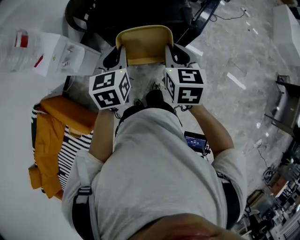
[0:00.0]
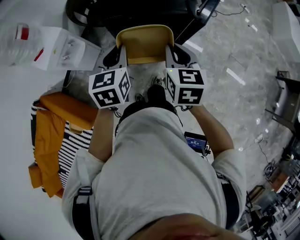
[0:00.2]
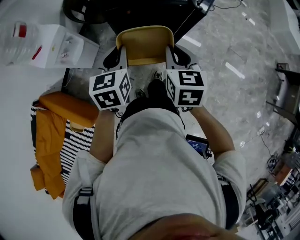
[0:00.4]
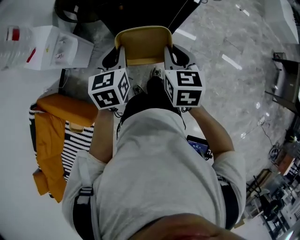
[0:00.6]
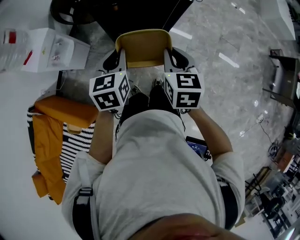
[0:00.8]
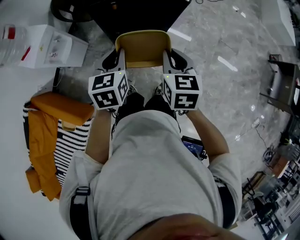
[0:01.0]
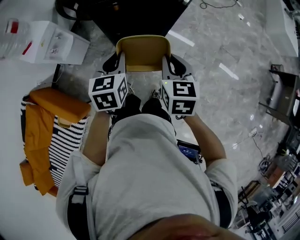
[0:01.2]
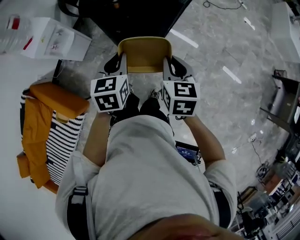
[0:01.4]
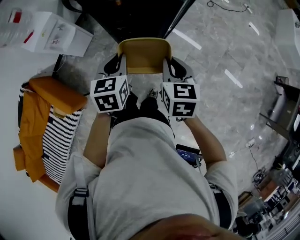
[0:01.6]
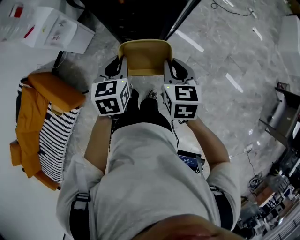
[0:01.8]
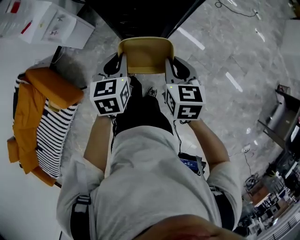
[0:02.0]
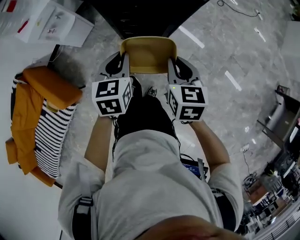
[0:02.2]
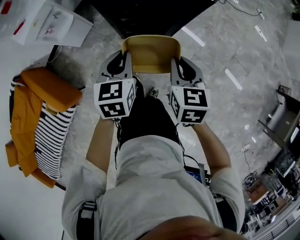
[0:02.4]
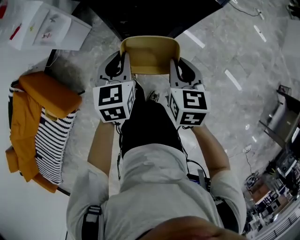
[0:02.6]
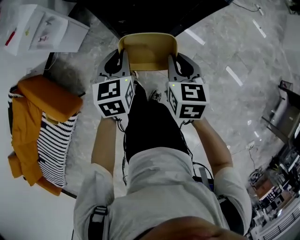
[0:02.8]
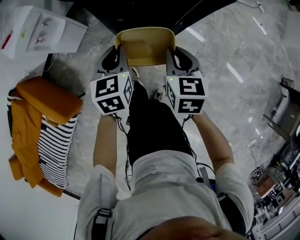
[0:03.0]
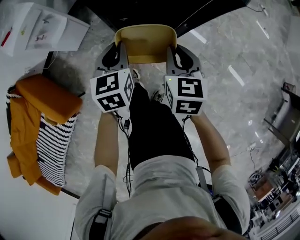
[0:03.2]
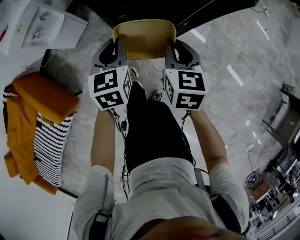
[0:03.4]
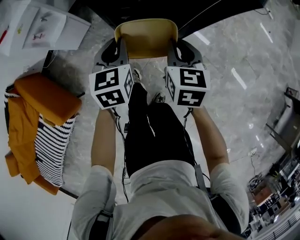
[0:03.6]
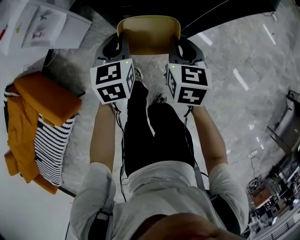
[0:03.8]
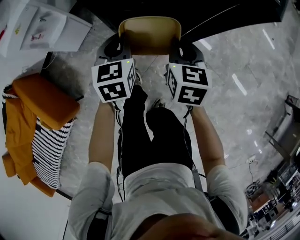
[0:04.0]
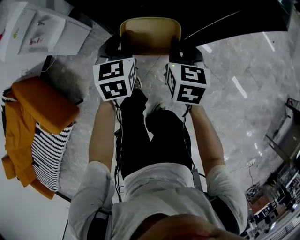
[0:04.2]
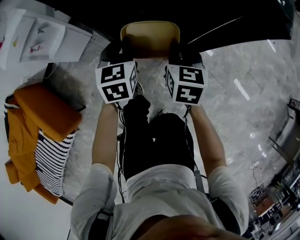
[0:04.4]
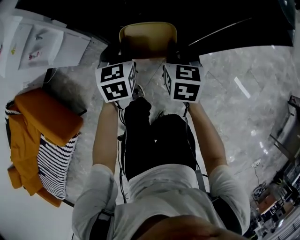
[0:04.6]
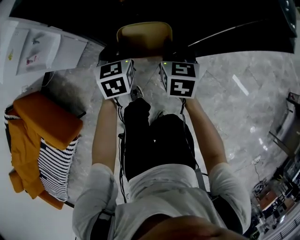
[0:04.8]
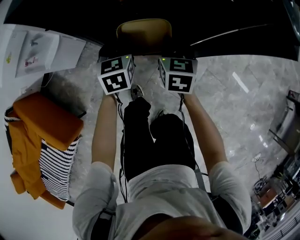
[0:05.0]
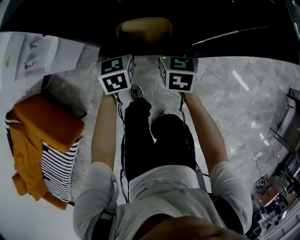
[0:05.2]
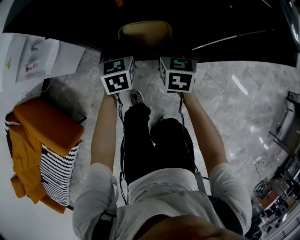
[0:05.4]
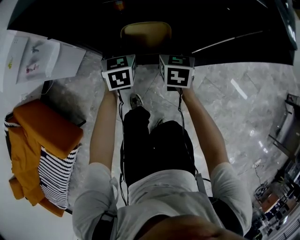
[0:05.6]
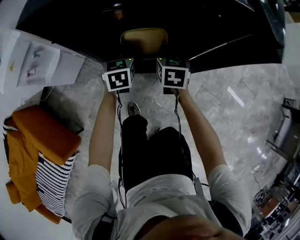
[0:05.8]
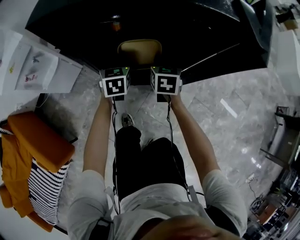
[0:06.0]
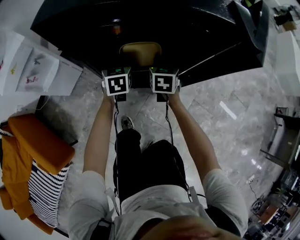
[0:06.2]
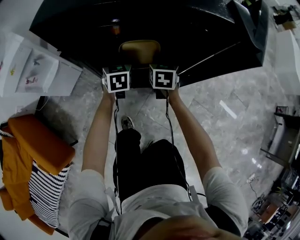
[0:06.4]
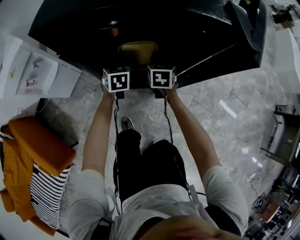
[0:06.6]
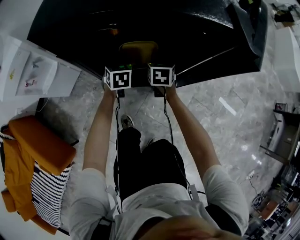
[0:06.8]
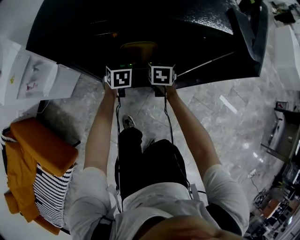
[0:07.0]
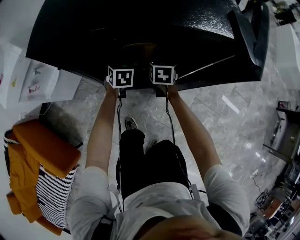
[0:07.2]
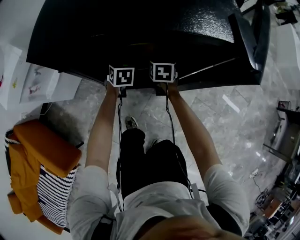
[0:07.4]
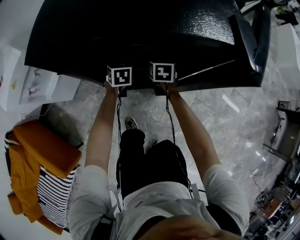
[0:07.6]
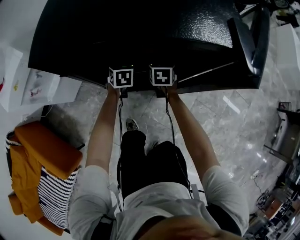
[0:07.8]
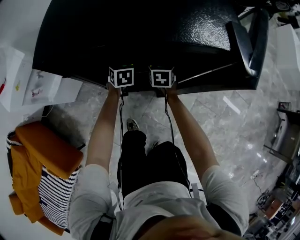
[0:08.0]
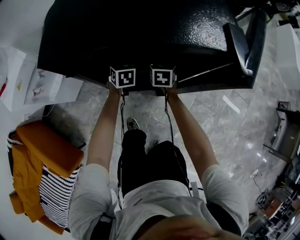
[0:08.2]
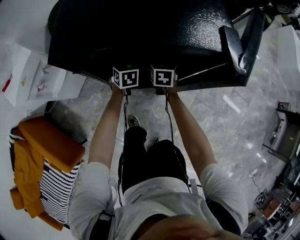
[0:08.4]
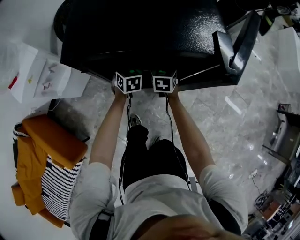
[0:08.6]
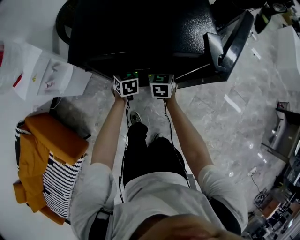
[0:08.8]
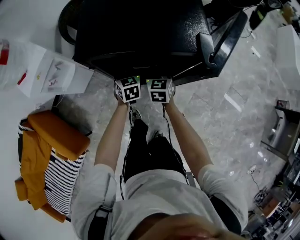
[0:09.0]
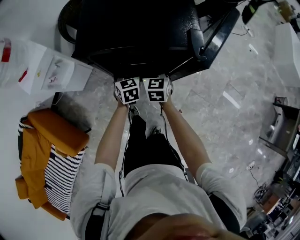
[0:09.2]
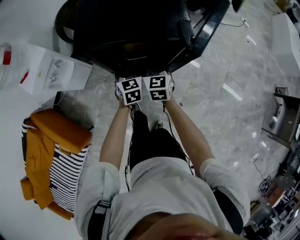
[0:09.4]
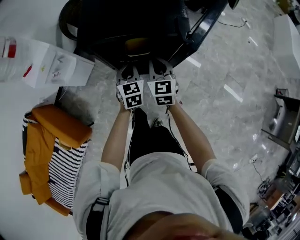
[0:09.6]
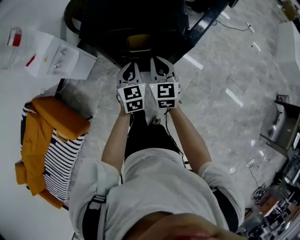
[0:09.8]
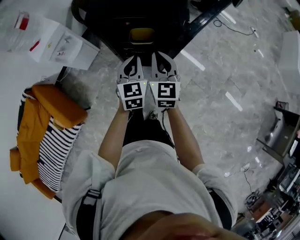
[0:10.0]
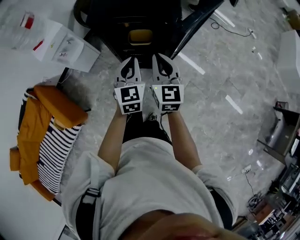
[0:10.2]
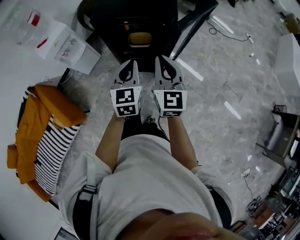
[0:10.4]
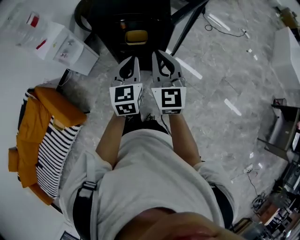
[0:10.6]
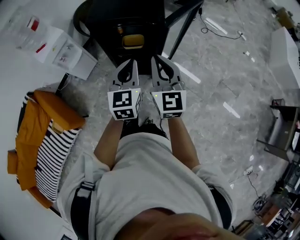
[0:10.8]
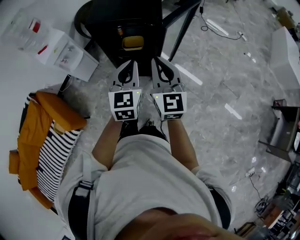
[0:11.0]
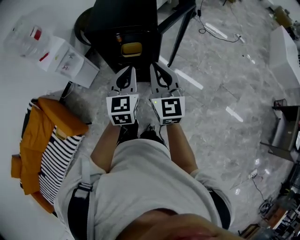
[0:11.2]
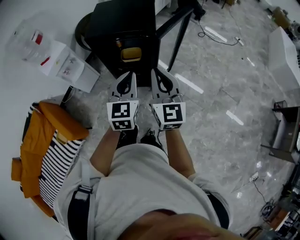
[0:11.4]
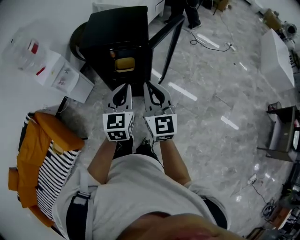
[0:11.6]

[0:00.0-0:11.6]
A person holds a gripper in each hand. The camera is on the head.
0:00.0 to 0:01.4: The left gripper goes approximately 15 cm backward, to the right and downward; the right gripper shifts some 15 cm backward and to the right.
0:01.4 to 0:02.8: Both grippers move downward and forward, roughly 15 cm.
0:02.8 to 0:04.4: The two grippers go about 20 cm downward and forward.
0:04.4 to 0:05.8: The two grippers go about 10 cm forward and downward.
0:05.8 to 0:07.2: The left gripper goes approximately 10 cm downward and forward; the right gripper moves forward and downward, roughly 10 cm.
0:07.2 to 0:08.8: Both grippers move upward, roughly 15 cm.
0:08.8 to 0:10.2: The two grippers go roughly 35 cm upward and backward. The right gripper turns by approximately 30 degrees, while the left gripper swivels some 20 degrees, and closes its fingers.
0:10.2 to 0:11.6: The right gripper is displaced backward and upward by roughly 15 cm, while the left gripper heads backward, upward and to the right, covering approximately 15 cm.

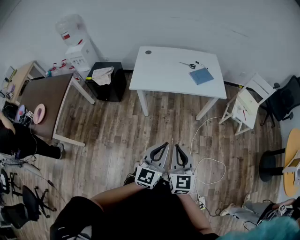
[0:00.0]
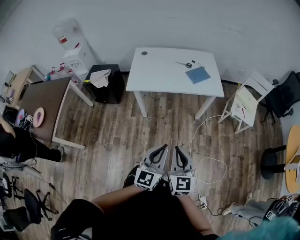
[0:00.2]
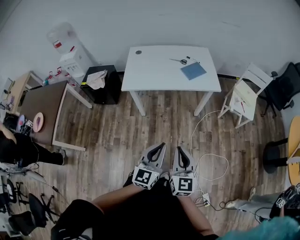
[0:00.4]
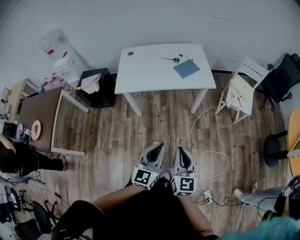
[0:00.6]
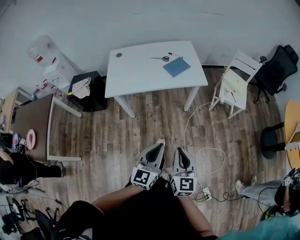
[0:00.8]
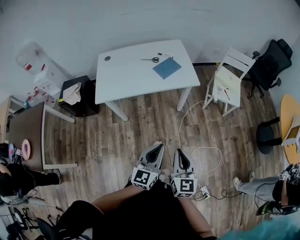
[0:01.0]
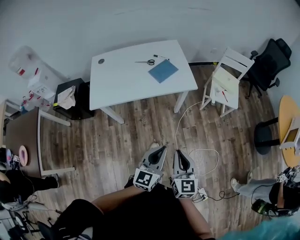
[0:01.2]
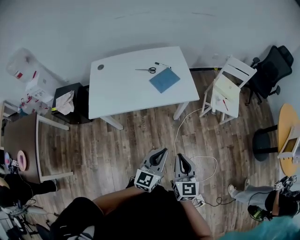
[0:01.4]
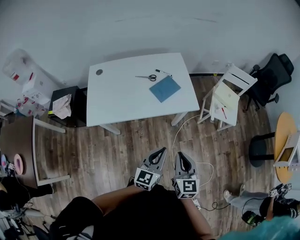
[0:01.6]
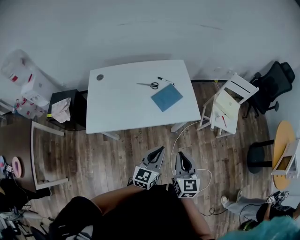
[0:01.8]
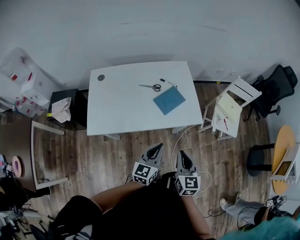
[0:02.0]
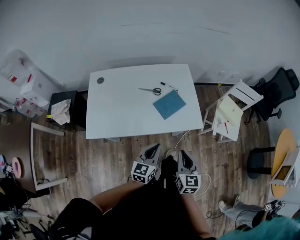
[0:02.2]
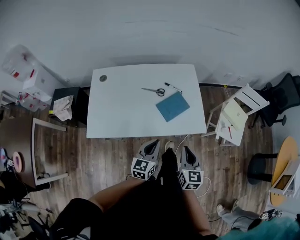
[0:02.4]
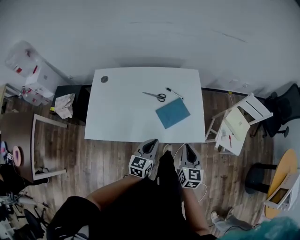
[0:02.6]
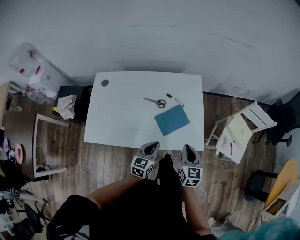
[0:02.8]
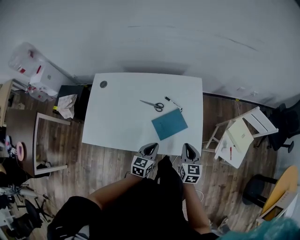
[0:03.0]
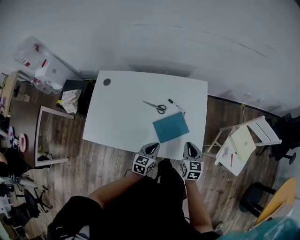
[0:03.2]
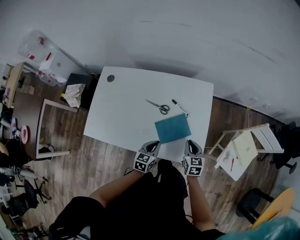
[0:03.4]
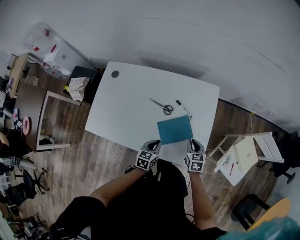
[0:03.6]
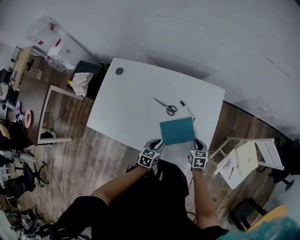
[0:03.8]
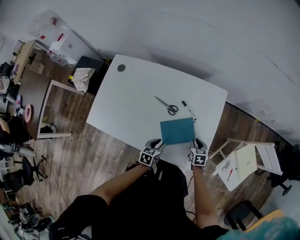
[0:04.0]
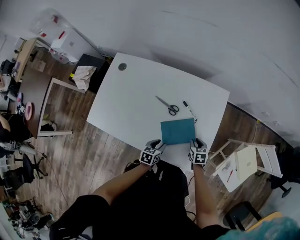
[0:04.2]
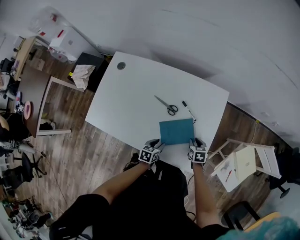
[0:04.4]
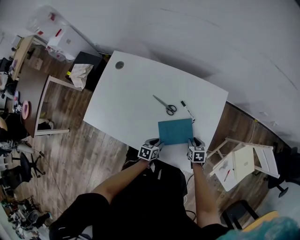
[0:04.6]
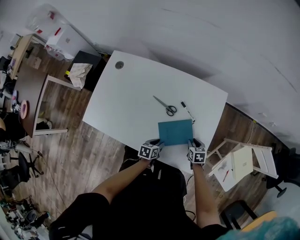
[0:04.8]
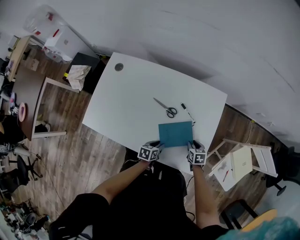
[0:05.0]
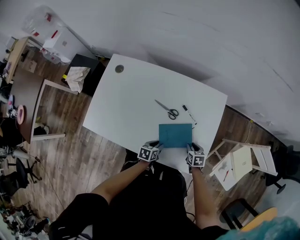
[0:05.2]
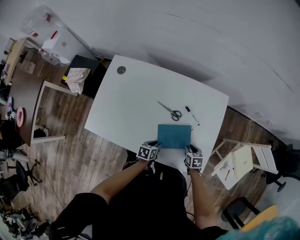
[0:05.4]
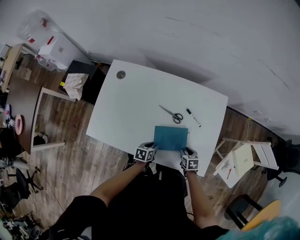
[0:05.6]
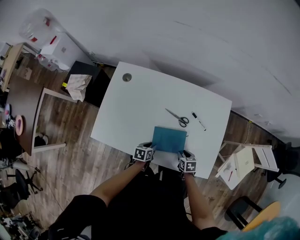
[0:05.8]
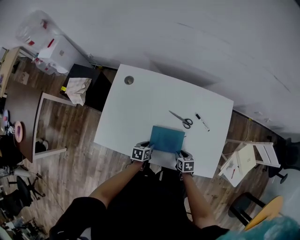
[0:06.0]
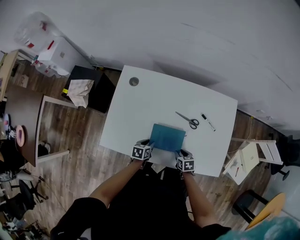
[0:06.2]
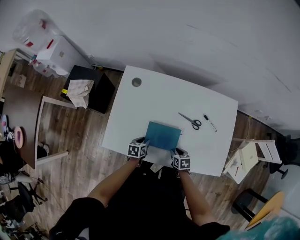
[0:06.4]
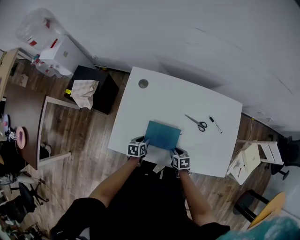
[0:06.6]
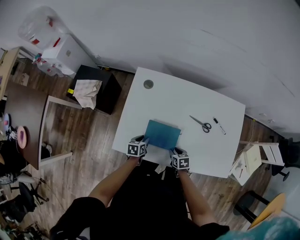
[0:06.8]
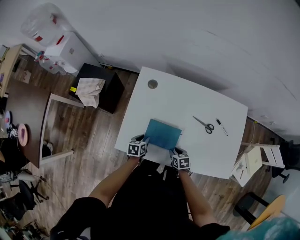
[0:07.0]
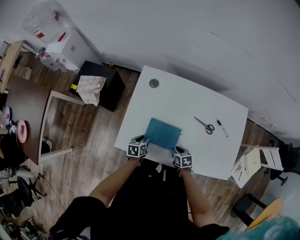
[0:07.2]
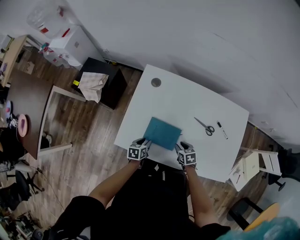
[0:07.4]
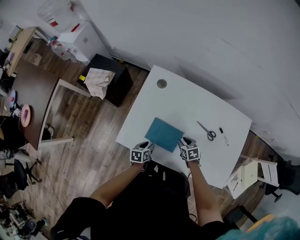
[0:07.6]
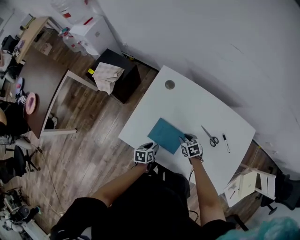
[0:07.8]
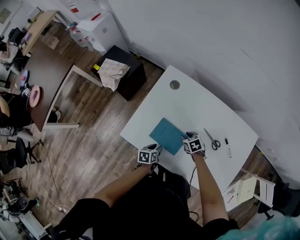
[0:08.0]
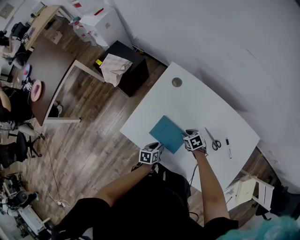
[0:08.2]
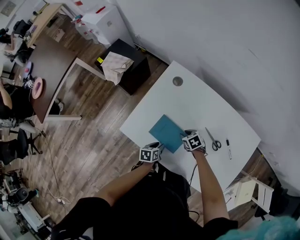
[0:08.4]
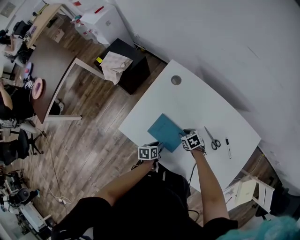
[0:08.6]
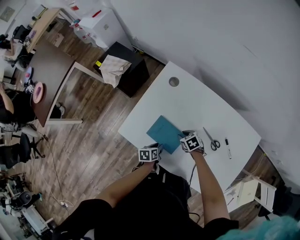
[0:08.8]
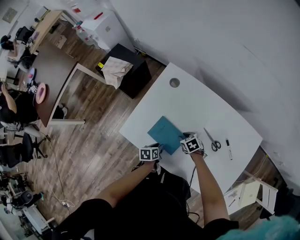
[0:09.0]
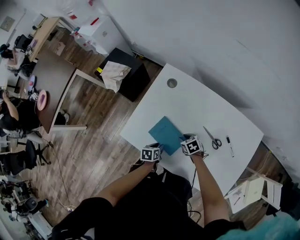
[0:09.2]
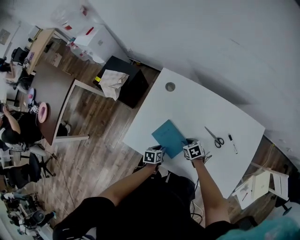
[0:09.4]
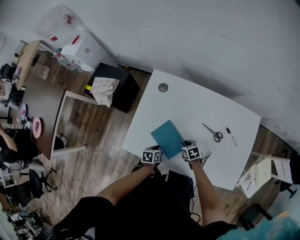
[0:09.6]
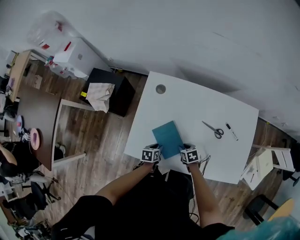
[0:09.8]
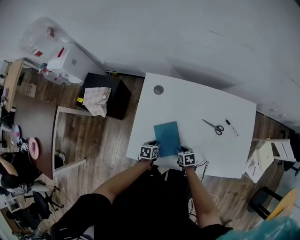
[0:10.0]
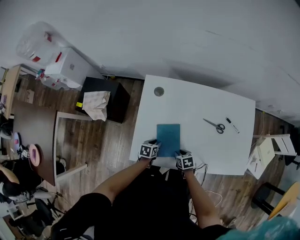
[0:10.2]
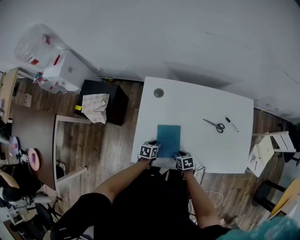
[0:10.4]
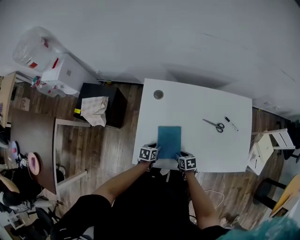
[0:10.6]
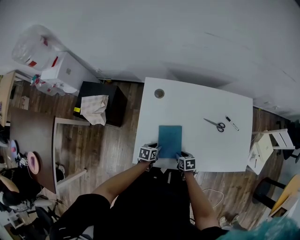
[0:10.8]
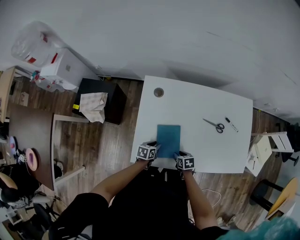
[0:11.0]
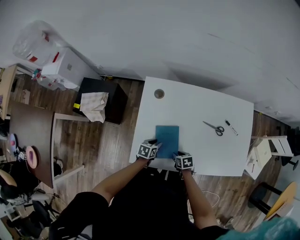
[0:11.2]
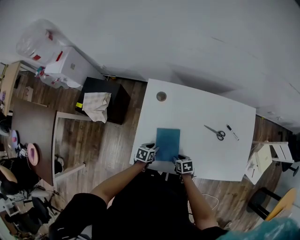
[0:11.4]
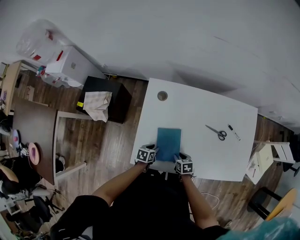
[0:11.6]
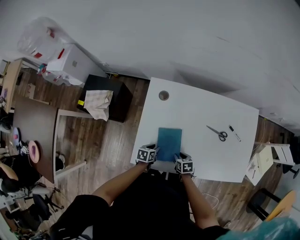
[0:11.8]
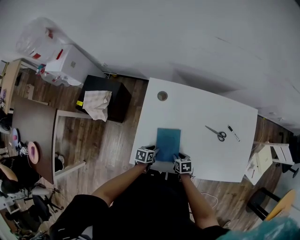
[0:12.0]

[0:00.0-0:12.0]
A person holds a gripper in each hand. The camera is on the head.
0:00.0 to 0:01.6: The two grippers go some 30 cm forward and to the right.
0:01.6 to 0:03.0: The left gripper moves forward and downward, some 35 cm, and rotates some 20 degrees; the right gripper moves forward, roughly 40 cm.
0:03.0 to 0:04.4: The left gripper goes approximately 15 cm downward, rotates roughly 30 degrees, and opens. The right gripper shifts about 25 cm downward and forward, and turns by roughly 40 degrees.
0:04.4 to 0:06.0: Both grippers move to the left, about 20 cm.
0:06.0 to 0:07.6: The right gripper goes about 20 cm to the left and forward, and changes its angle by roughly 20 degrees; the left gripper heads to the left, covering some 15 cm.
0:07.6 to 0:09.0: The right gripper changes place by roughly 5 cm, and rotates approximately 30 degrees; the left gripper ends up approximately 5 cm from where it was.
0:09.0 to 0:10.4: The left gripper shifts by some 10 cm, and changes its angle by roughly 40 degrees; the right gripper ends up roughly 15 cm from where it was, and twists about 40 degrees clockwise, seen from behind.
0:10.4 to 0:12.0: The grippers make only small movements.
